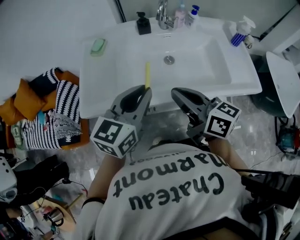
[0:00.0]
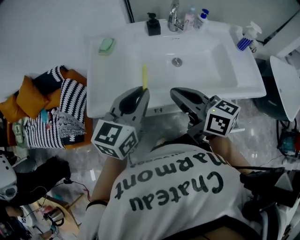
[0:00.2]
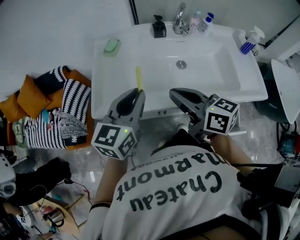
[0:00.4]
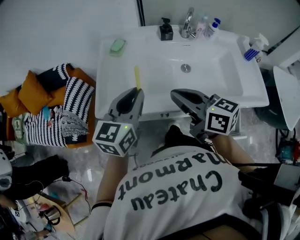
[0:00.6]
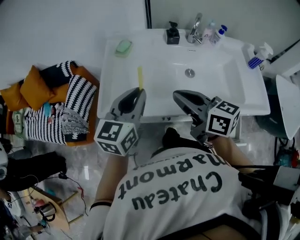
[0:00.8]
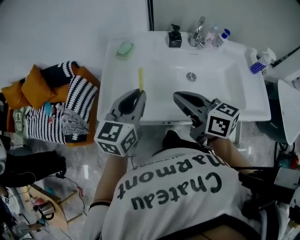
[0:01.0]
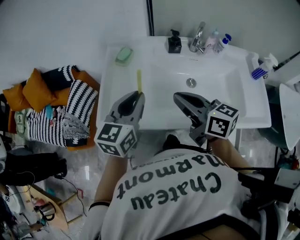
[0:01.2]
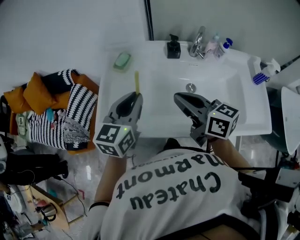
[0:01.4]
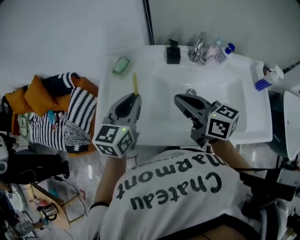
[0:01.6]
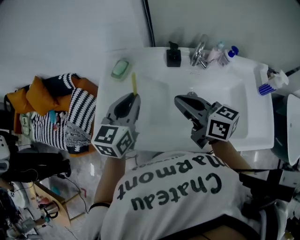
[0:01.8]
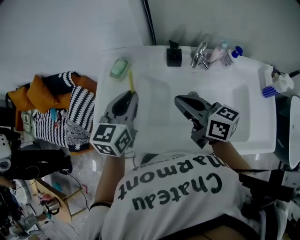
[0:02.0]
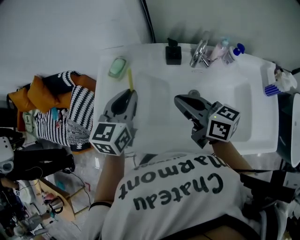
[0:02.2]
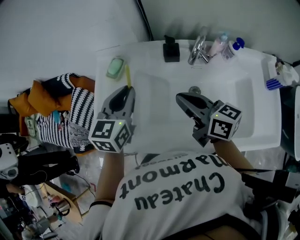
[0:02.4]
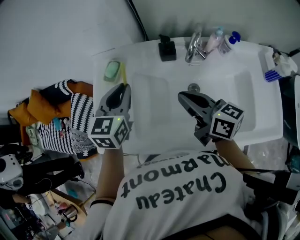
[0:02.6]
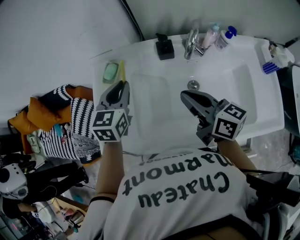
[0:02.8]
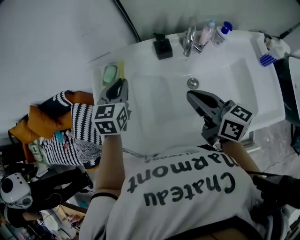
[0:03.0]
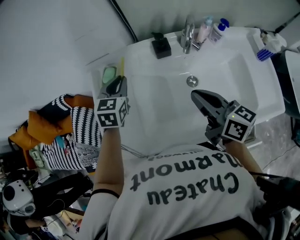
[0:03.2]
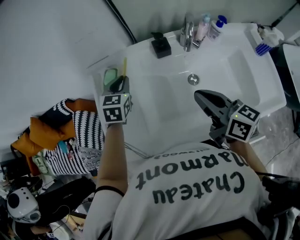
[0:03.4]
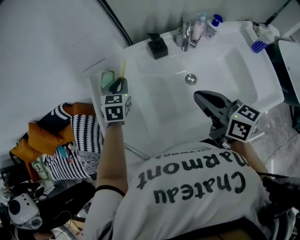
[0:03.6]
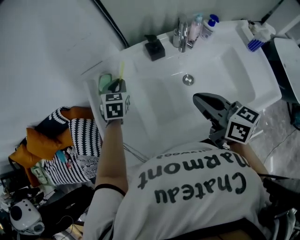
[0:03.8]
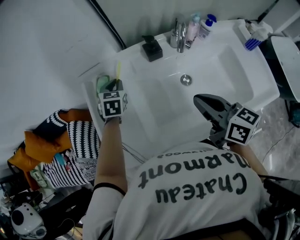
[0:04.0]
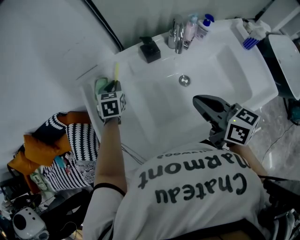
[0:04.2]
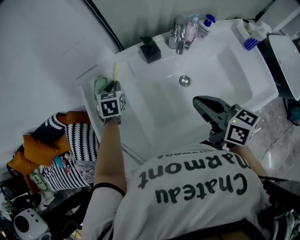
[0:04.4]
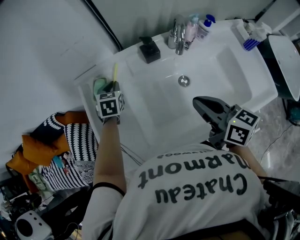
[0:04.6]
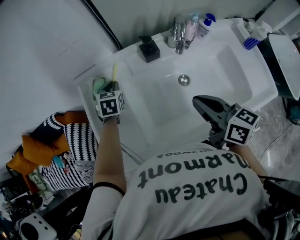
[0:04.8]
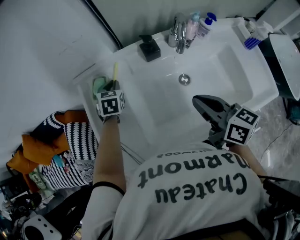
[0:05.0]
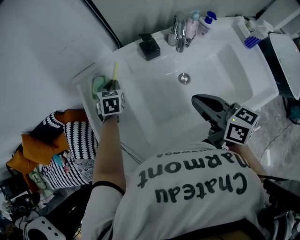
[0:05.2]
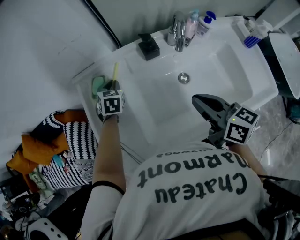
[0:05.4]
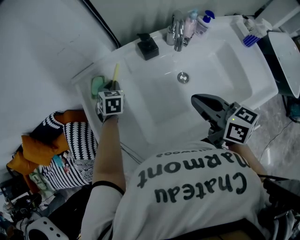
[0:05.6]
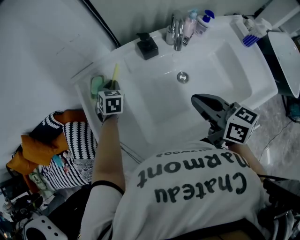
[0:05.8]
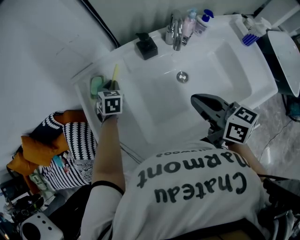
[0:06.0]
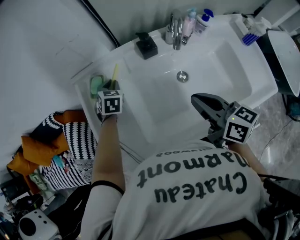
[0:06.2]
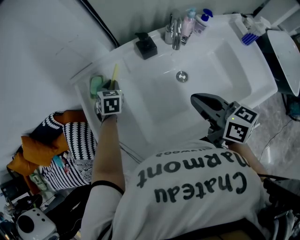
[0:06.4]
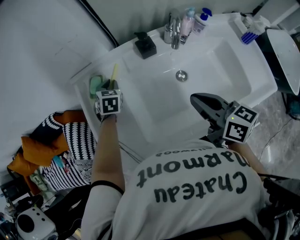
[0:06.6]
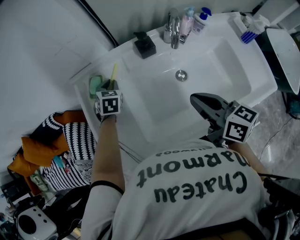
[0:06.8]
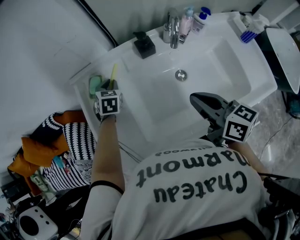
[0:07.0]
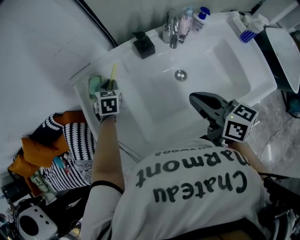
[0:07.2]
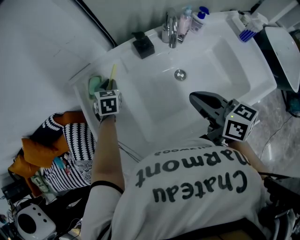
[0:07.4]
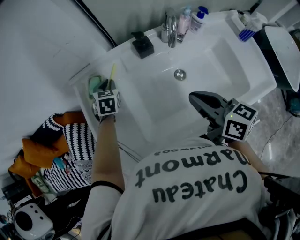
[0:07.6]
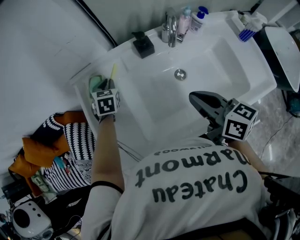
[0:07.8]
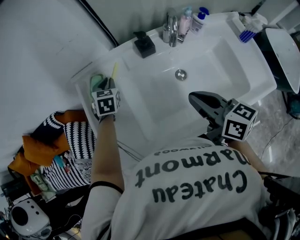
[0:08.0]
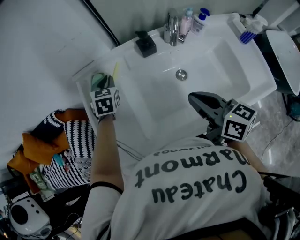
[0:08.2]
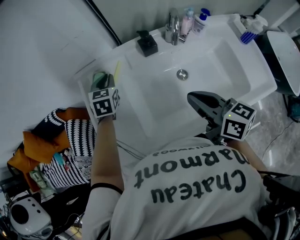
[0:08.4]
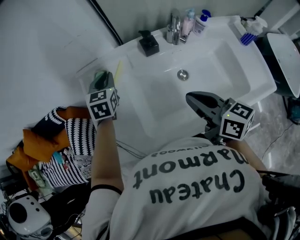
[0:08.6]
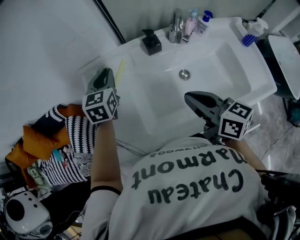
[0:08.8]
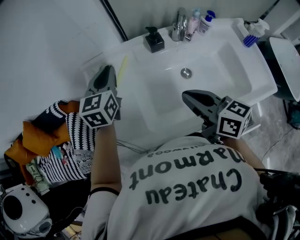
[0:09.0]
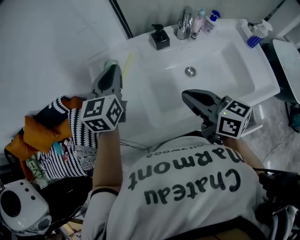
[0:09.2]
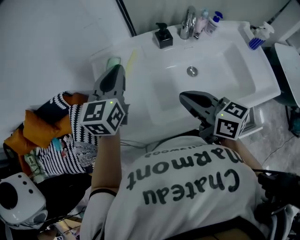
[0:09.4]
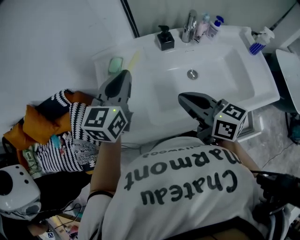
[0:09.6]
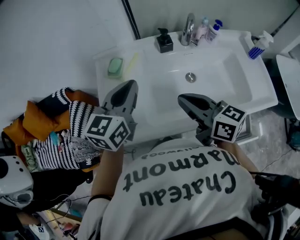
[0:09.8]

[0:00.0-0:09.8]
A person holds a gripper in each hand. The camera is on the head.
0:00.0 to 0:01.4: The right gripper shifts about 15 cm forward. Meanwhile the left gripper goes roughly 15 cm forward and to the left.
0:01.4 to 0:02.8: The right gripper moves to the right and forward, roughly 10 cm; the left gripper is displaced forward by about 15 cm.
0:02.8 to 0:04.2: The left gripper moves downward and forward, about 15 cm.
0:04.2 to 0:05.6: There are only small adjustments of the grippers.
0:05.6 to 0:07.0: Both grippers stay about where they are.
0:07.0 to 0:08.4: The left gripper travels upward by about 5 cm.
0:08.4 to 0:09.8: The right gripper travels to the left by approximately 5 cm; the left gripper is displaced backward and upward by roughly 25 cm, and turns by about 30 degrees.

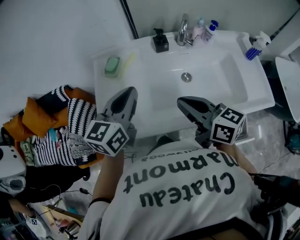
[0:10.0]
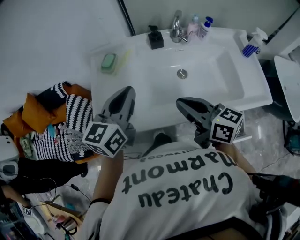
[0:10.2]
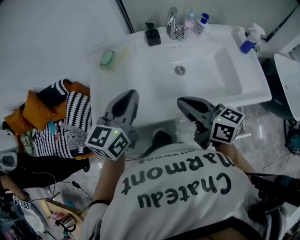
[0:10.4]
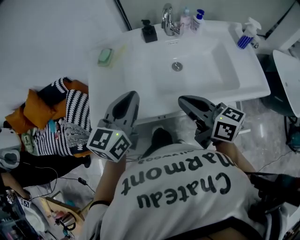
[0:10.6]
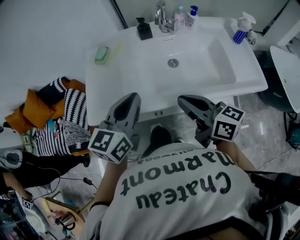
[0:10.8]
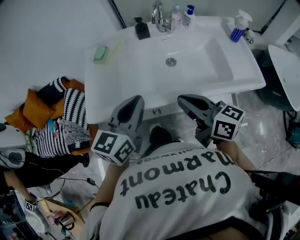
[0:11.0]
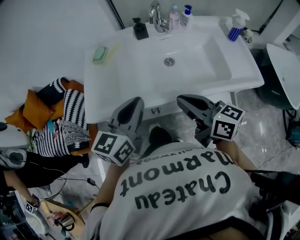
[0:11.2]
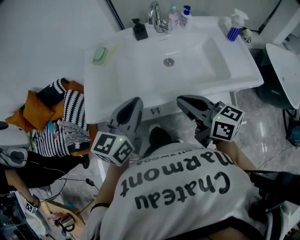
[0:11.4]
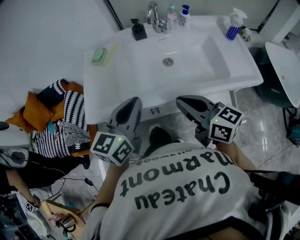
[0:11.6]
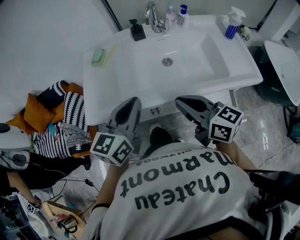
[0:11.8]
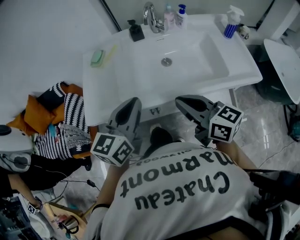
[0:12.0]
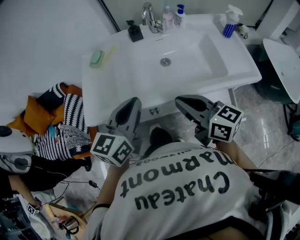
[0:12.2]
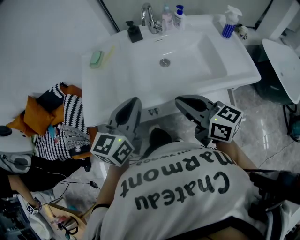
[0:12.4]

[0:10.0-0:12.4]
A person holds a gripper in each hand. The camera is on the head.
0:10.0 to 0:11.2: The two grippers go approximately 15 cm backward and to the right.
0:11.2 to 0:12.4: The grippers move only a little.

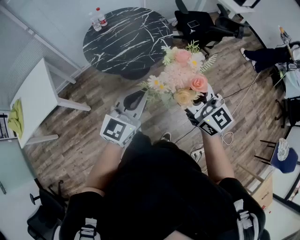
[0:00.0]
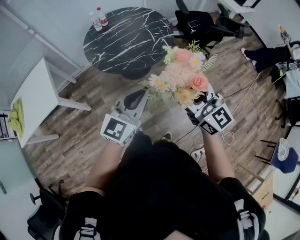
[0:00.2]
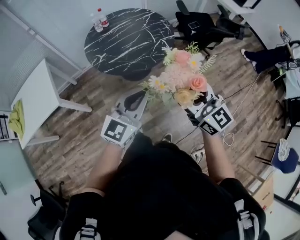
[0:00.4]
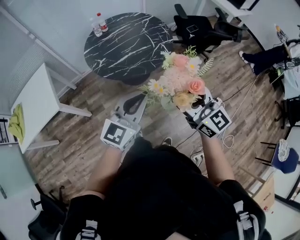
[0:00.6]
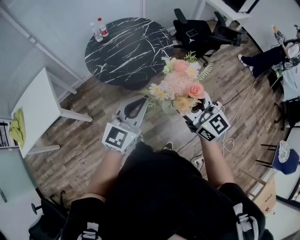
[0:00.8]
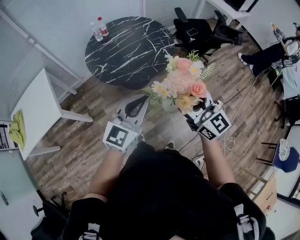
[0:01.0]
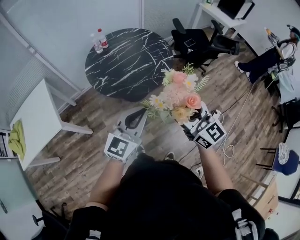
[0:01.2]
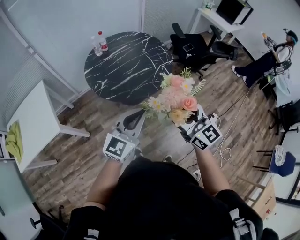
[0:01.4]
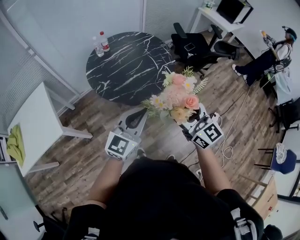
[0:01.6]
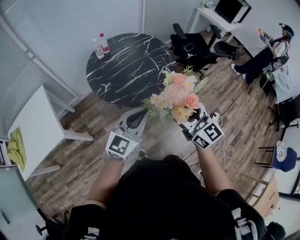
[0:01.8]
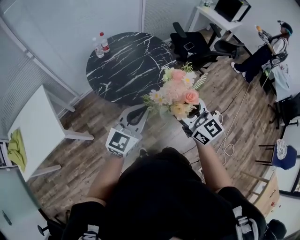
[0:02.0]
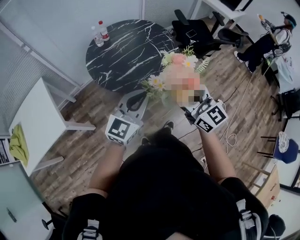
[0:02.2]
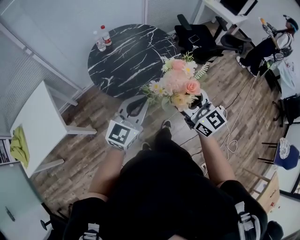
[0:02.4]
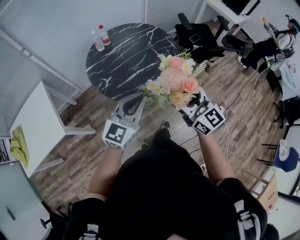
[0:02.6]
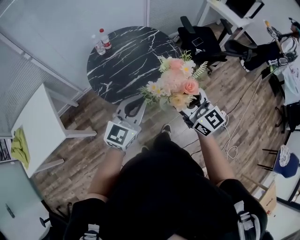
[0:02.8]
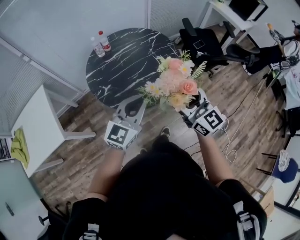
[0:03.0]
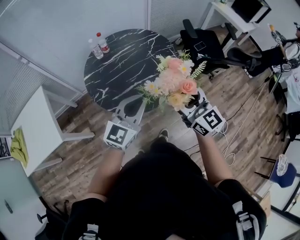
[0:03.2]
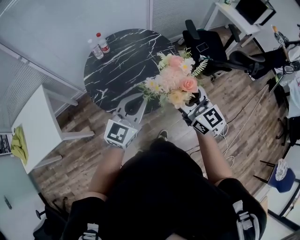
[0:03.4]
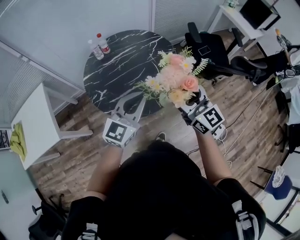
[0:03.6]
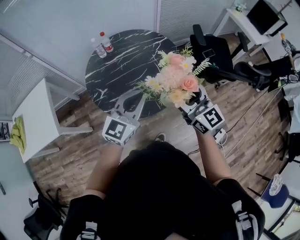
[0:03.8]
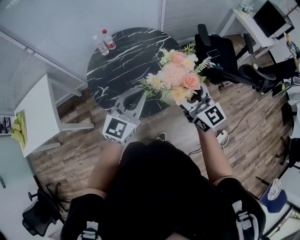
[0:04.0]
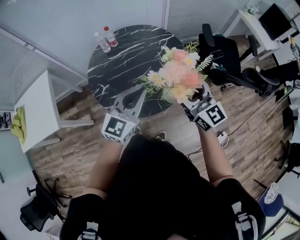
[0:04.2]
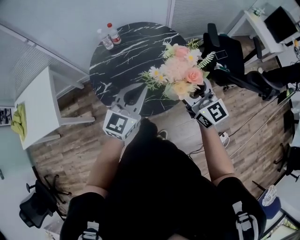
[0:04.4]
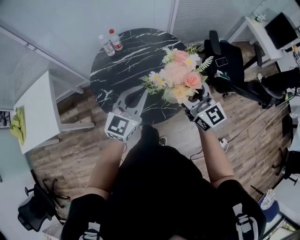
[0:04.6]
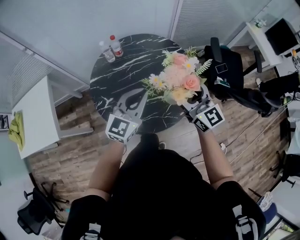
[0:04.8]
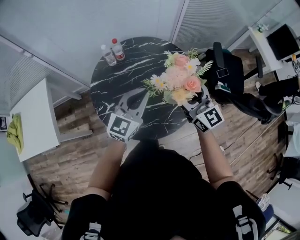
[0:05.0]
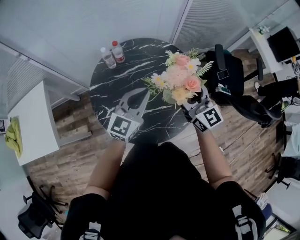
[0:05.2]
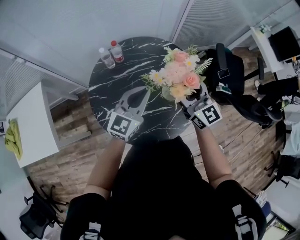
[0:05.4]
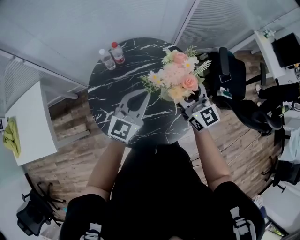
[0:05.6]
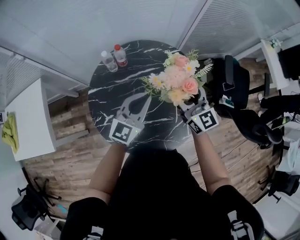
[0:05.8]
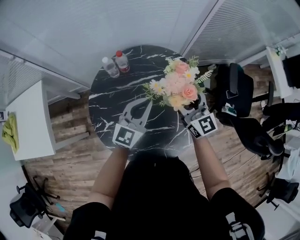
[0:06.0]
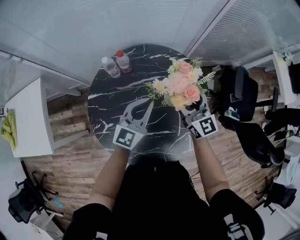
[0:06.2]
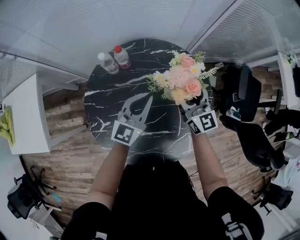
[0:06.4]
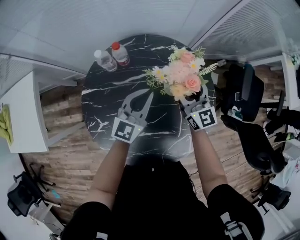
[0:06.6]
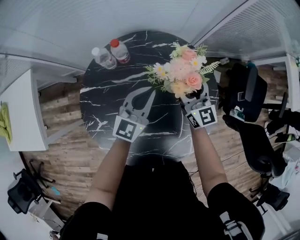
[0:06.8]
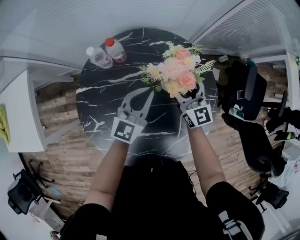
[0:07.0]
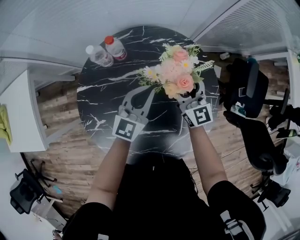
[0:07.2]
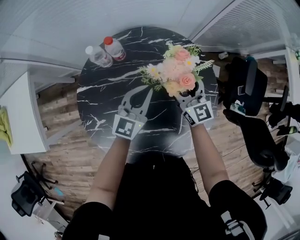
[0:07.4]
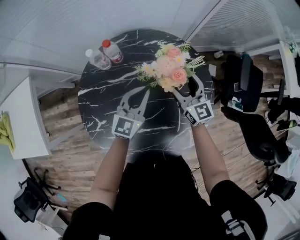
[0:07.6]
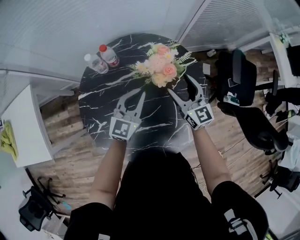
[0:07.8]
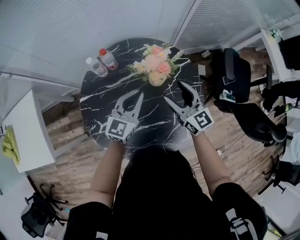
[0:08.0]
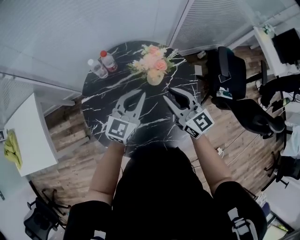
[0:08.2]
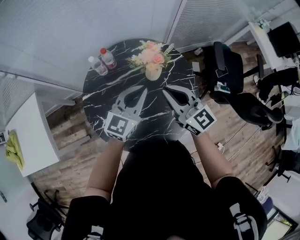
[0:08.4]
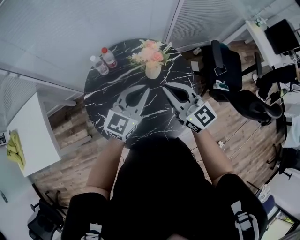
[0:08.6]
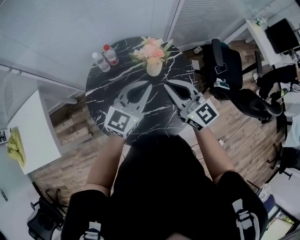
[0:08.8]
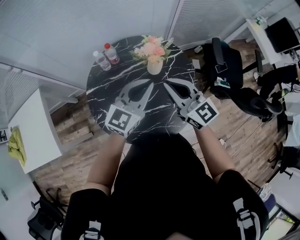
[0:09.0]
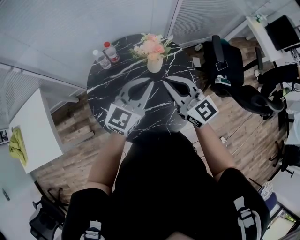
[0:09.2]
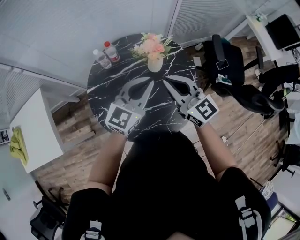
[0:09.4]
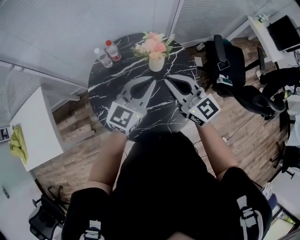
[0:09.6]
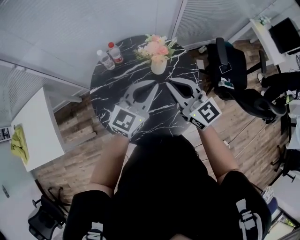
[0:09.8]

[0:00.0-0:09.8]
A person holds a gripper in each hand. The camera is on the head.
0:00.0 to 0:01.4: The two grippers go approximately 10 cm to the left and forward.
0:01.4 to 0:02.8: The two grippers go some 15 cm forward.
0:02.8 to 0:04.2: The grippers both shift forward and to the right by about 20 cm.
0:04.2 to 0:05.6: The grippers both shift forward by some 25 cm.
0:05.6 to 0:07.0: Both grippers move downward and forward, approximately 25 cm.
0:07.0 to 0:08.4: Both grippers move upward and backward, roughly 25 cm. The right gripper closes its fingers.
0:08.4 to 0:09.8: The left gripper heads upward and backward, covering some 5 cm. The right gripper changes place by some 5 cm.

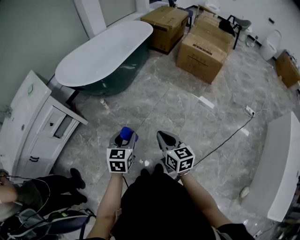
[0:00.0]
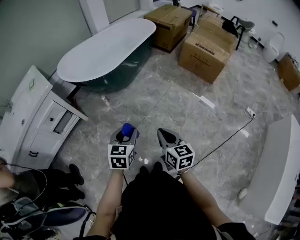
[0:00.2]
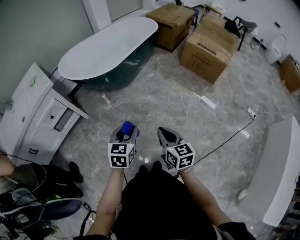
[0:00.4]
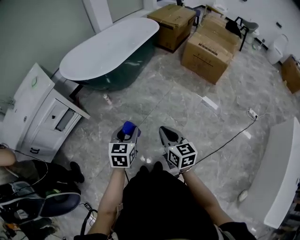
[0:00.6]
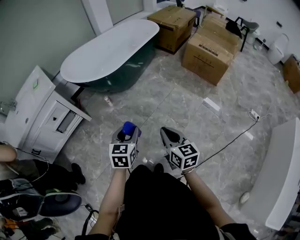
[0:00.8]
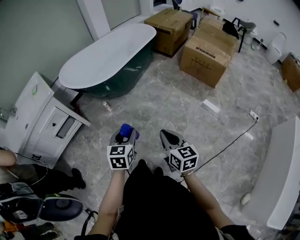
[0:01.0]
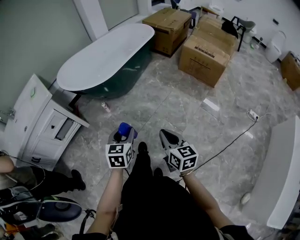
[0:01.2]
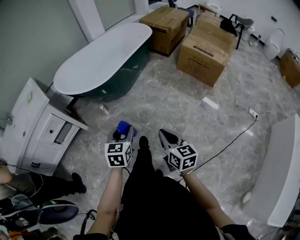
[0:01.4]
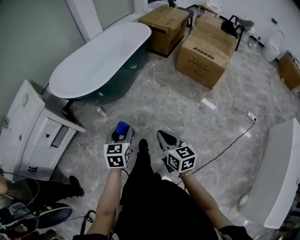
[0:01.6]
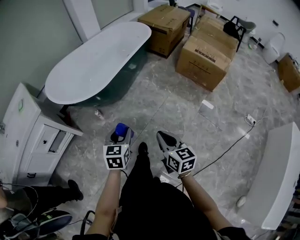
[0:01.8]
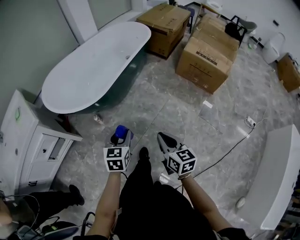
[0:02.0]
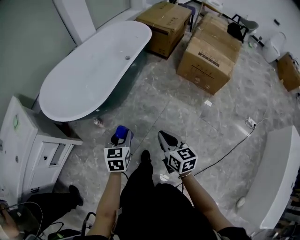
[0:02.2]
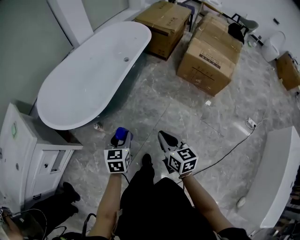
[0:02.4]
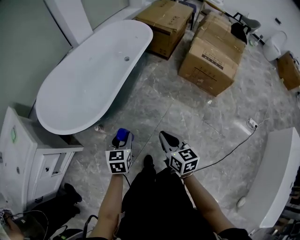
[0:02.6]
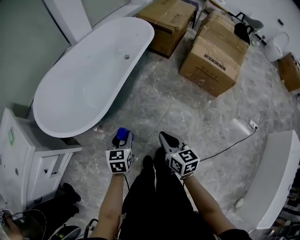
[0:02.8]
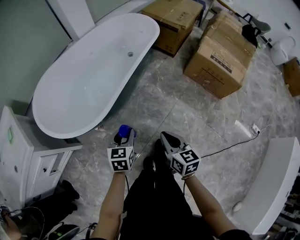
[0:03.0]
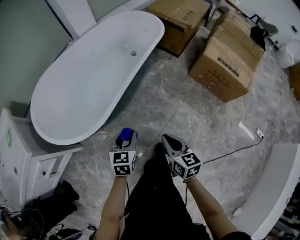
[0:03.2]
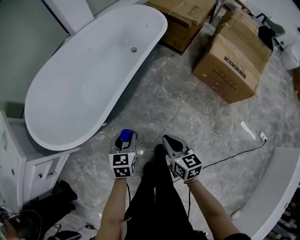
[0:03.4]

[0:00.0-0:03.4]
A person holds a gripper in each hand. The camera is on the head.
0:00.0 to 0:01.6: The right gripper is displaced forward and to the right by approximately 10 cm; the left gripper heads forward, covering roughly 15 cm.
0:01.6 to 0:03.4: The left gripper moves forward and downward, some 40 cm. The right gripper goes approximately 40 cm forward.
